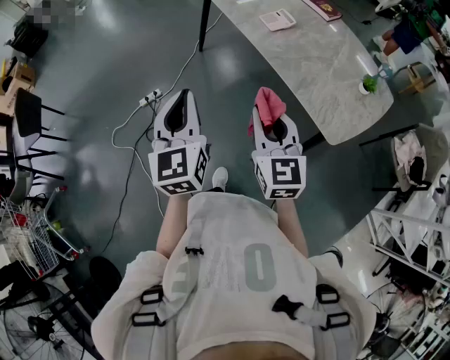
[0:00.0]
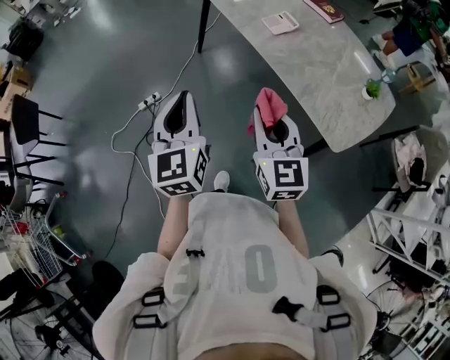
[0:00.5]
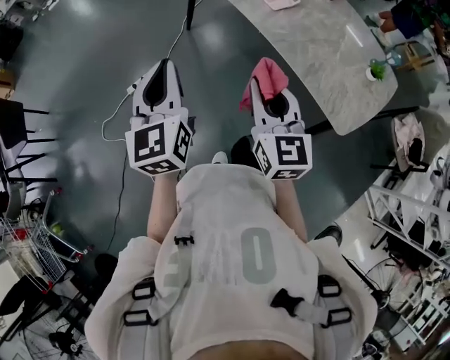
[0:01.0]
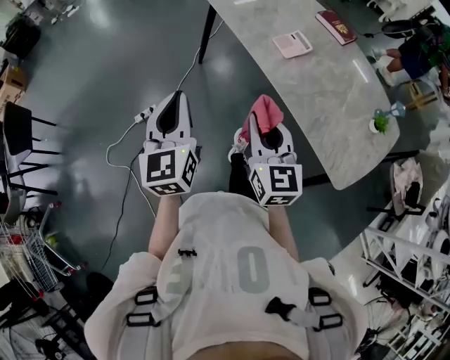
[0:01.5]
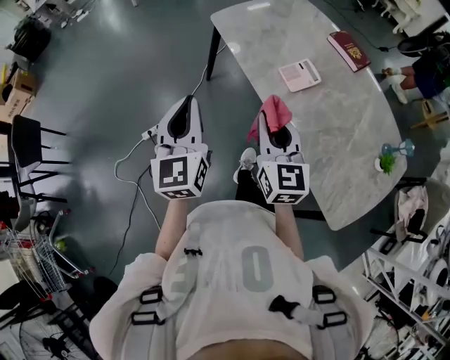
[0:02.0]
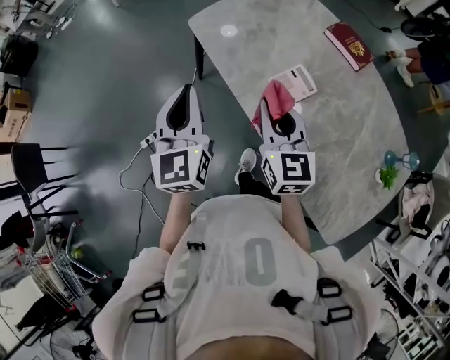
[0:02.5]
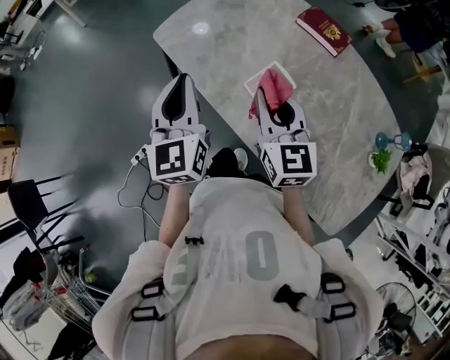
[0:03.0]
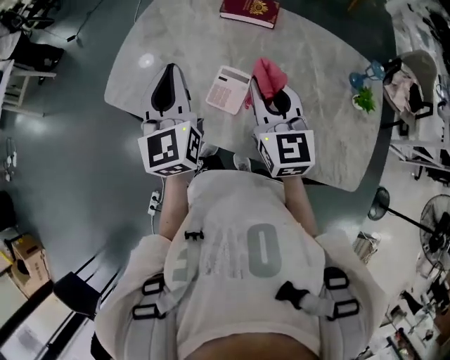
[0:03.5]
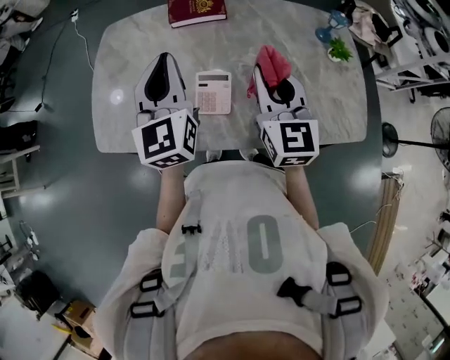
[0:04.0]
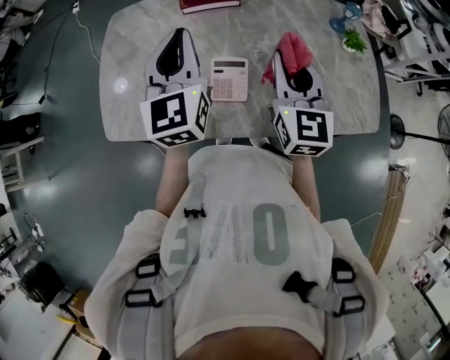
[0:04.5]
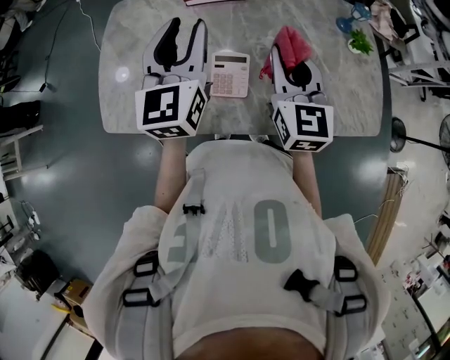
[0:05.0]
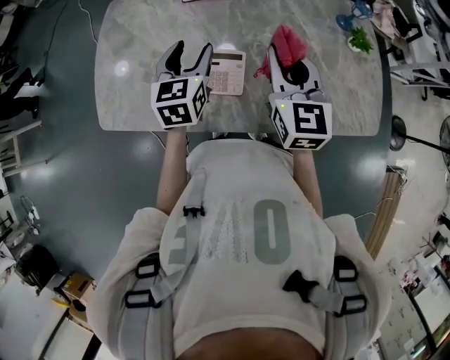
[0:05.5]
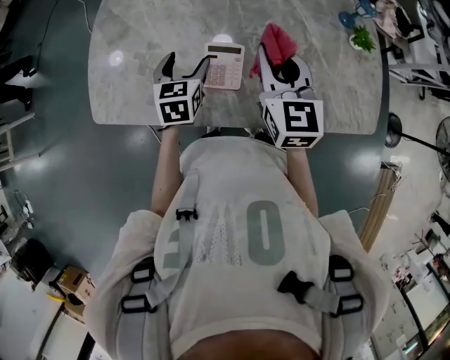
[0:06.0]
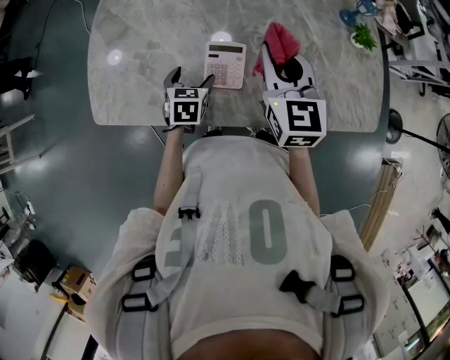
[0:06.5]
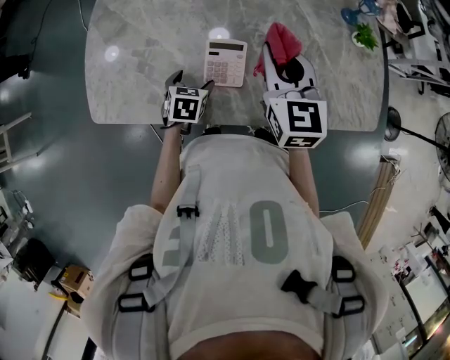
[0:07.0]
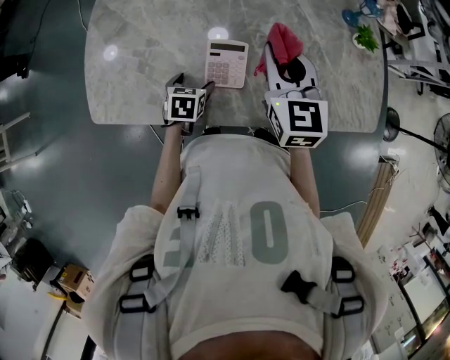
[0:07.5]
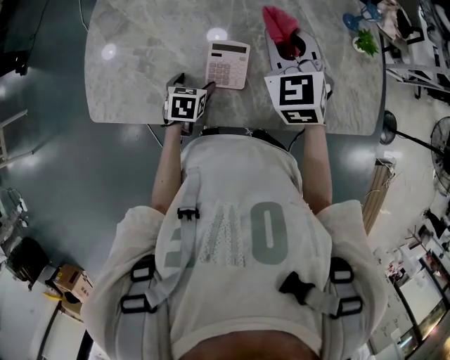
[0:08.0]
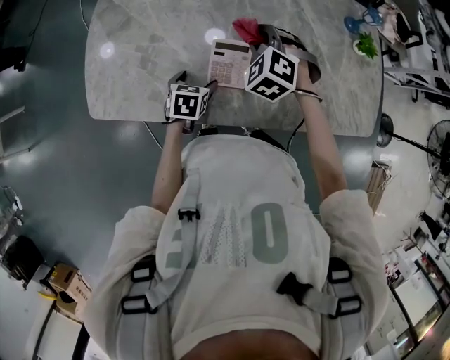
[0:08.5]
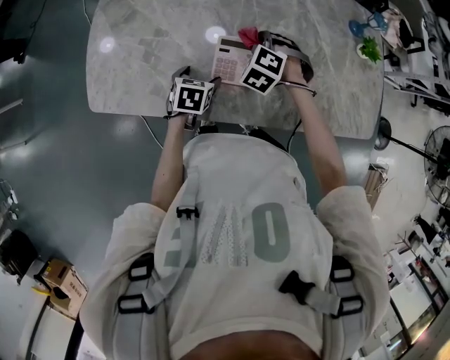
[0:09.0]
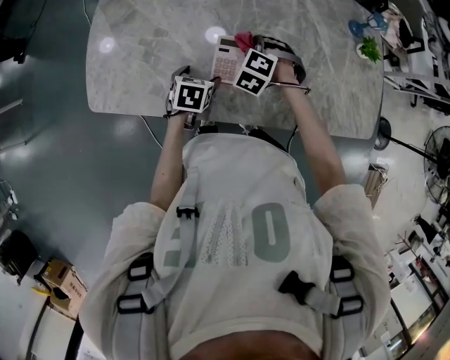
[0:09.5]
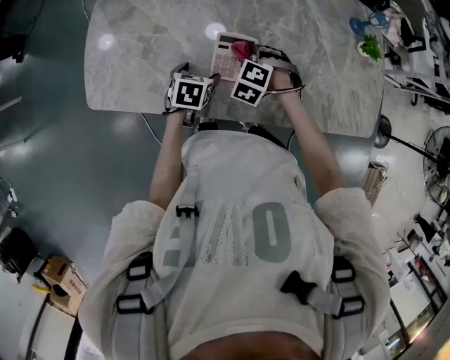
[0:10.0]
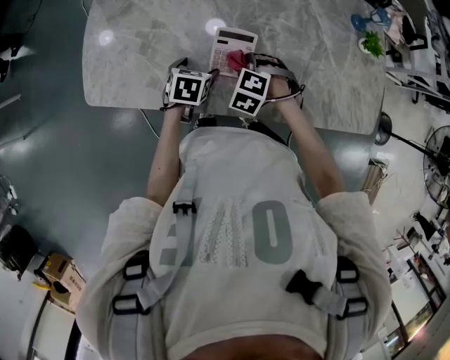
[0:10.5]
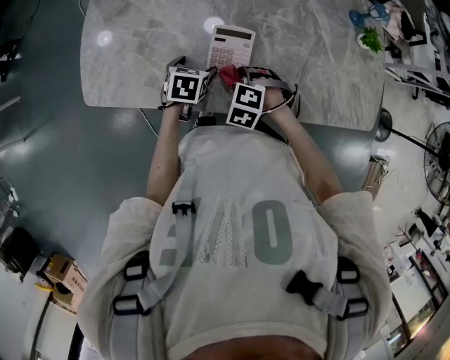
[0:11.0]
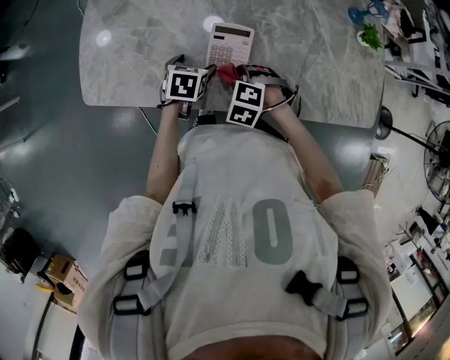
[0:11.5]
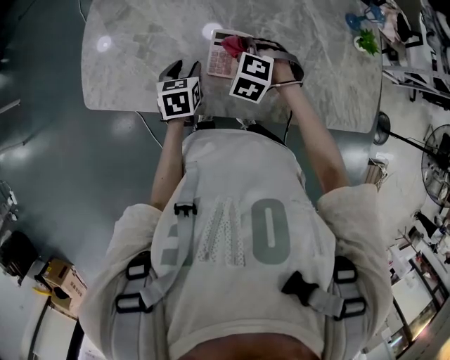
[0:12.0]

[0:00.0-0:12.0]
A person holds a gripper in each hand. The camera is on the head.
0:00.0 to 0:02.0: Both grippers move forward, about 35 cm.
0:02.0 to 0:04.0: The right gripper ends up approximately 30 cm from where it was, and changes its angle by about 60 degrees. The left gripper changes place by approximately 50 cm, and swivels roughly 60 degrees.
0:04.0 to 0:06.0: The right gripper heads downward, covering about 5 cm, while the left gripper goes some 25 cm downward, tips its fingers downward by roughly 40 degrees, and opens.
0:06.0 to 0:08.0: The right gripper shifts about 5 cm forward, and swivels about 30 degrees. The left gripper goes roughly 15 cm downward, and changes its angle by about 20 degrees.
0:08.0 to 0:10.0: The right gripper travels downward by about 25 cm, and angles its fingers downward, by approximately 40 degrees.
0:10.0 to 0:12.0: The left gripper shifts by approximately 5 cm, and closes up. The right gripper goes backward and returns, about 10 cm each way.

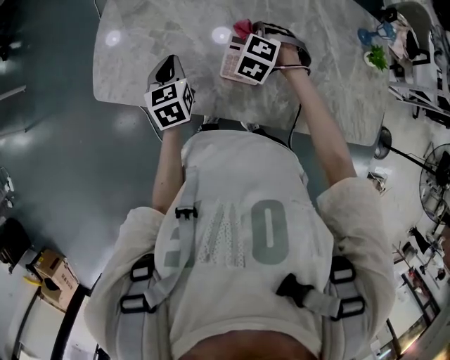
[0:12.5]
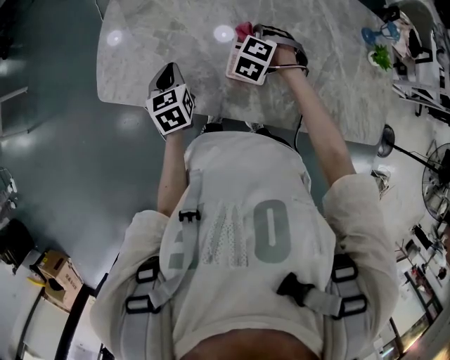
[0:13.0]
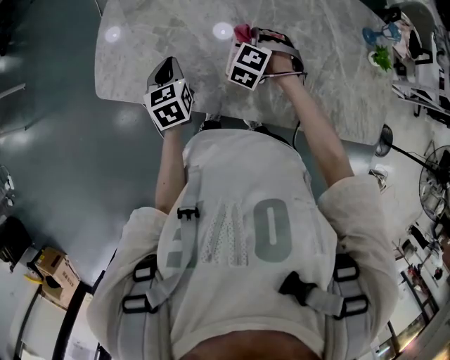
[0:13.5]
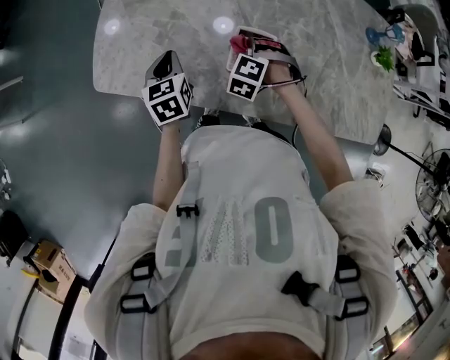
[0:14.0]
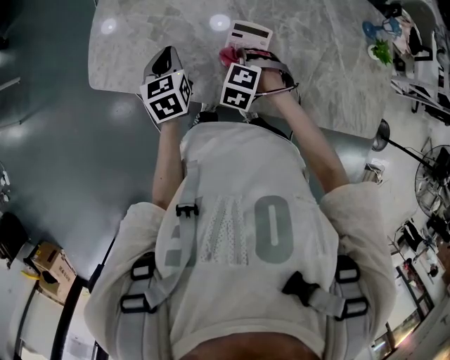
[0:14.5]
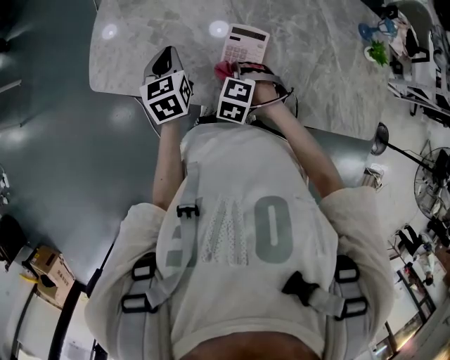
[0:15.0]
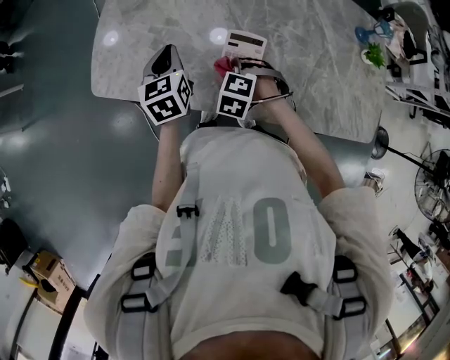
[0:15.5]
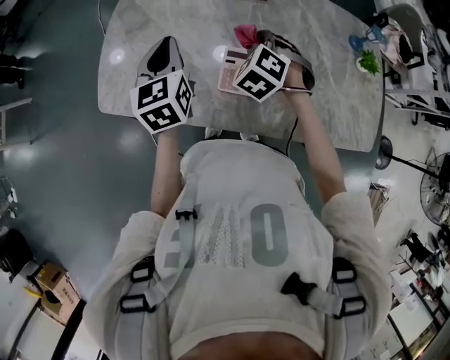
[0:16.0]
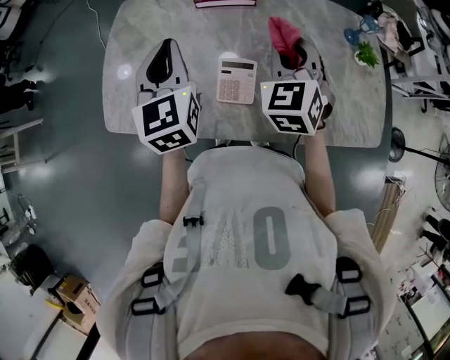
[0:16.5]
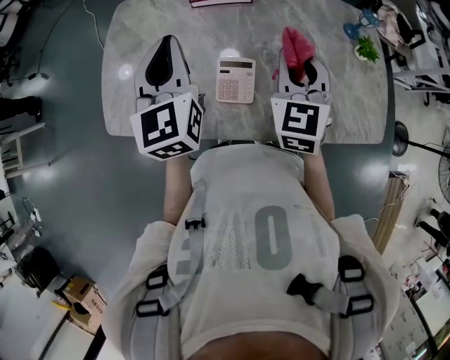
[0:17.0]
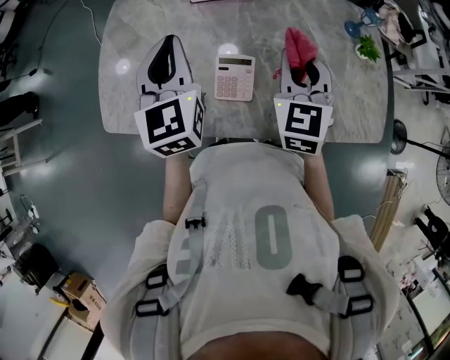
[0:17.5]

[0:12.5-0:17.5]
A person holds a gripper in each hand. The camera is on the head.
0:12.5 to 0:15.0: The right gripper is displaced backward and downward by some 15 cm.
0:15.0 to 0:17.5: Both grippers move upward and to the right, roughly 30 cm. The right gripper tilts its fingers some 50 degrees upward, while the left gripper rotates some 30 degrees.

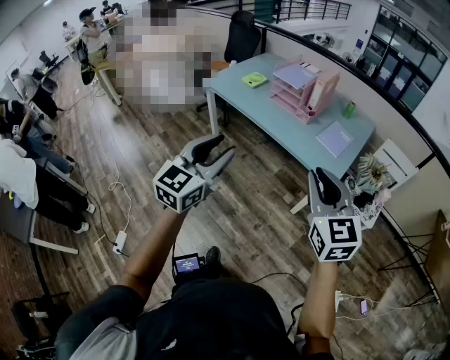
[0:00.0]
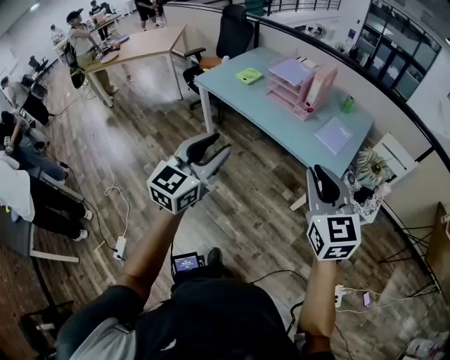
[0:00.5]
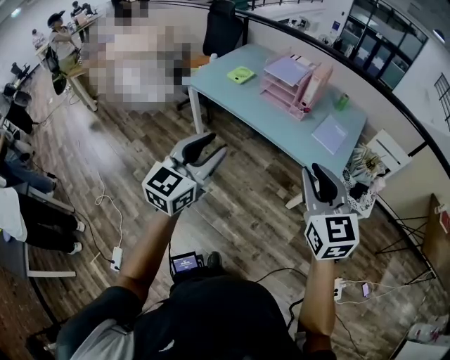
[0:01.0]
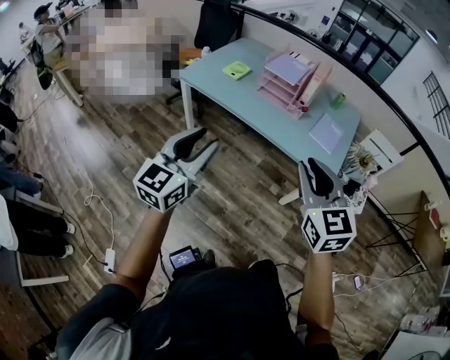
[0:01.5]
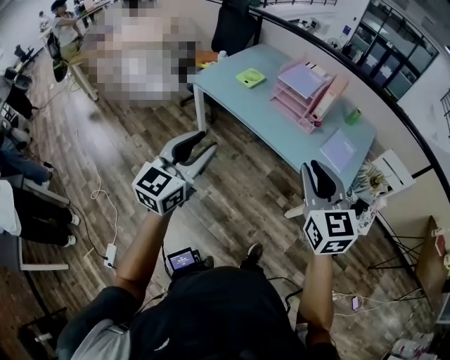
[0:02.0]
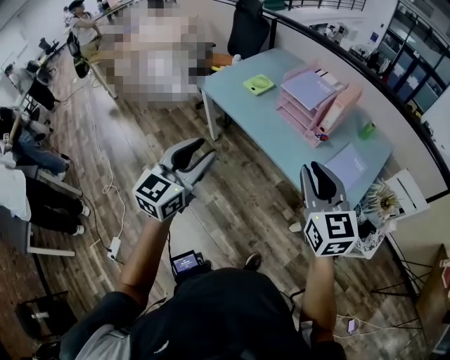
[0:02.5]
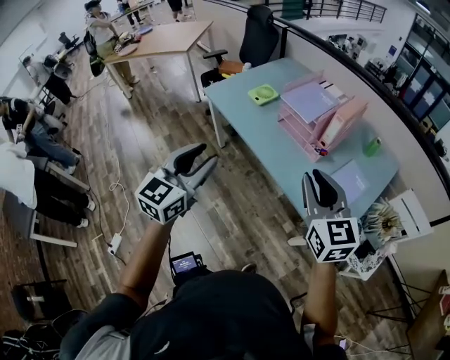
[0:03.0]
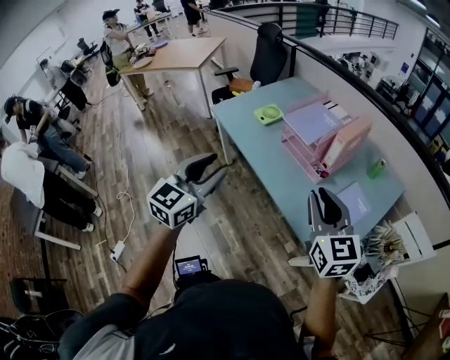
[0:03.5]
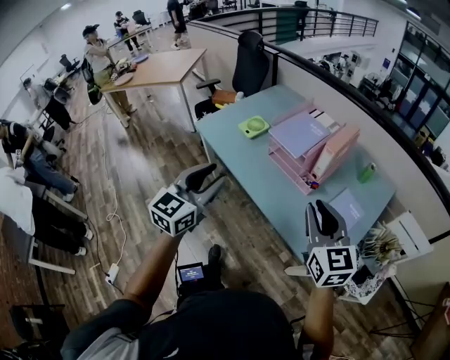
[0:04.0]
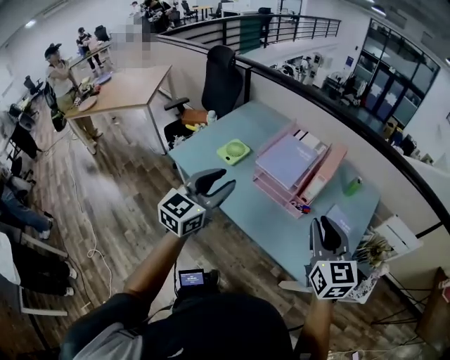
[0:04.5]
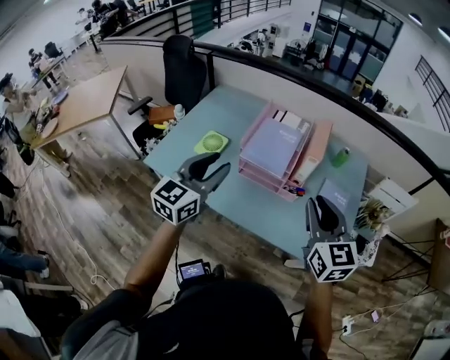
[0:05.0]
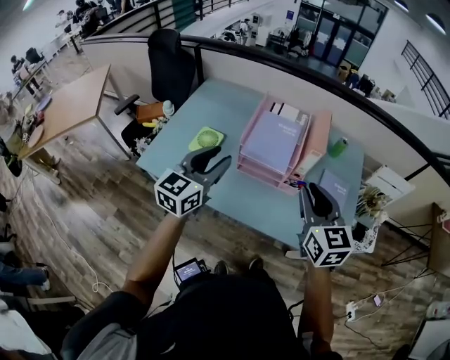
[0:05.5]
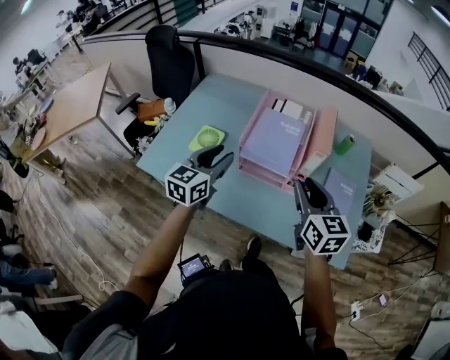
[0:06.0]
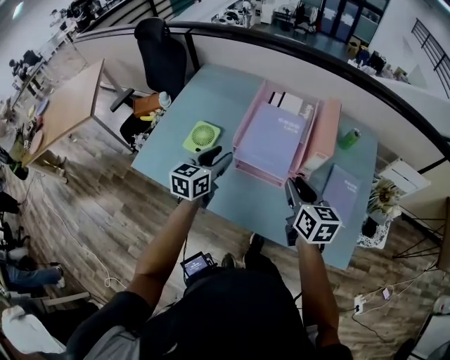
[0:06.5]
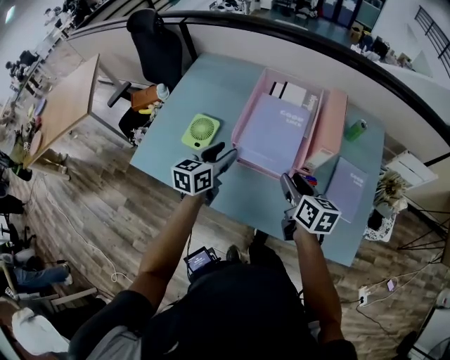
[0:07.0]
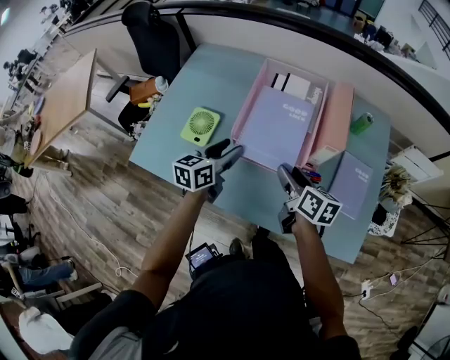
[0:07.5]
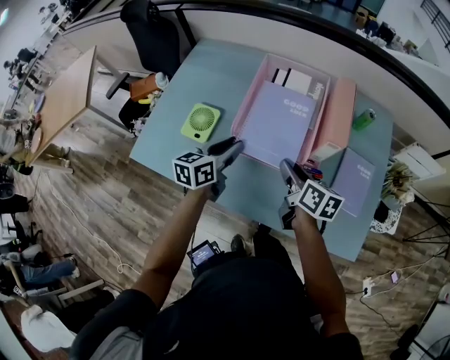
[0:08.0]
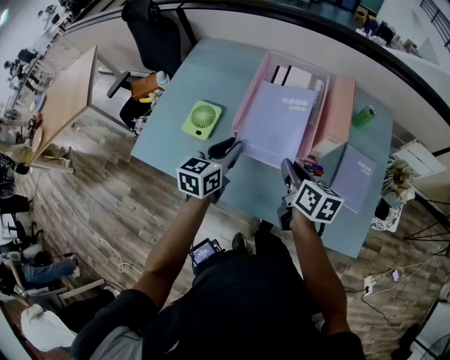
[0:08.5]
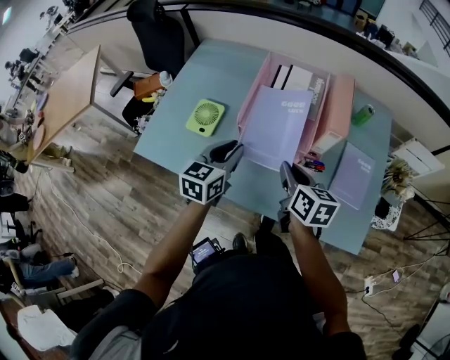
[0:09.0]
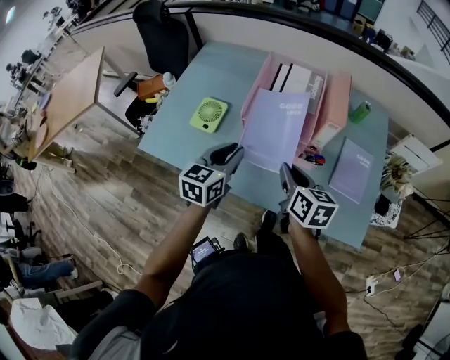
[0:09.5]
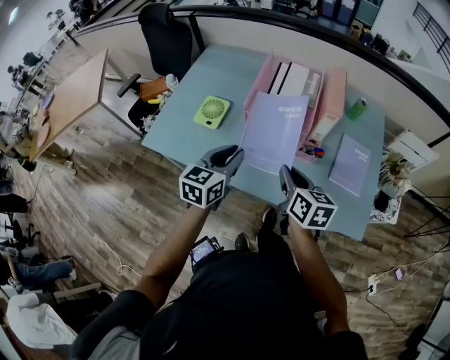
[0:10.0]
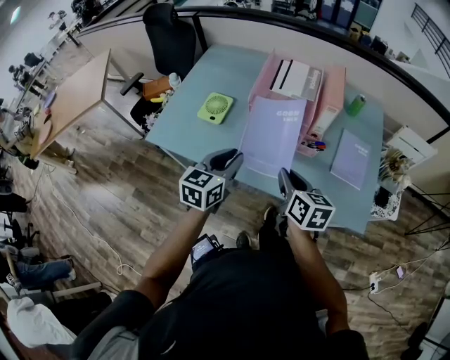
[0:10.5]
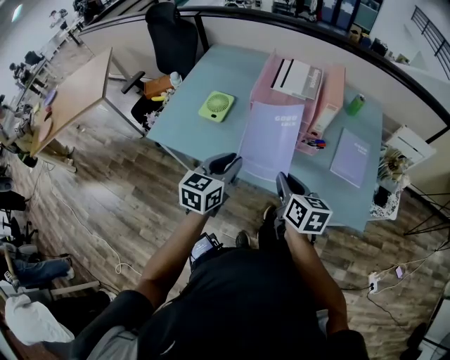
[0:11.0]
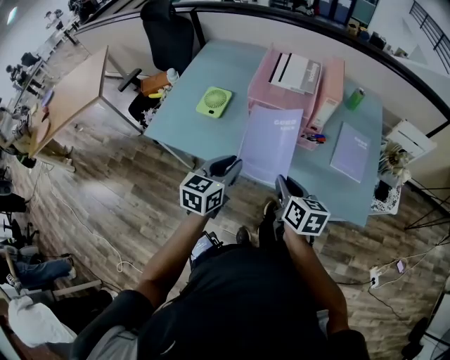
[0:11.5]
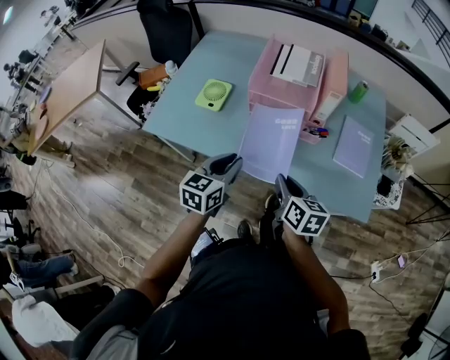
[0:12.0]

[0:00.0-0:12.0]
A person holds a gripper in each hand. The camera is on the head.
0:00.0 to 0:02.0: Both grippers move forward and to the left, roughly 20 cm.
0:02.0 to 0:04.0: The grippers both shift forward and to the right by some 25 cm.
0:04.0 to 0:06.0: The right gripper changes place by approximately 20 cm, and changes its angle by roughly 30 degrees; the left gripper ends up about 35 cm from where it was, and turns by approximately 30 degrees.
0:06.0 to 0:08.0: Both grippers move downward and forward, roughly 15 cm. The left gripper rotates roughly 20 degrees. The right gripper changes its angle by roughly 40 degrees.
0:08.0 to 0:10.0: Both grippers travel together backward, about 15 cm.
0:10.0 to 0:12.0: Both grippers travel together backward and downward, approximately 10 cm.
